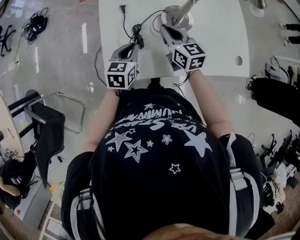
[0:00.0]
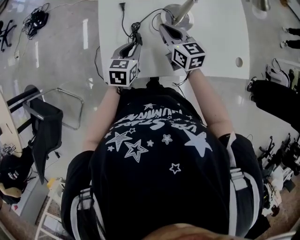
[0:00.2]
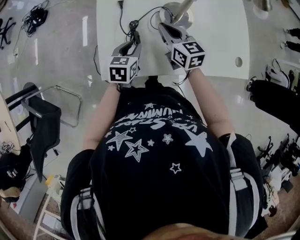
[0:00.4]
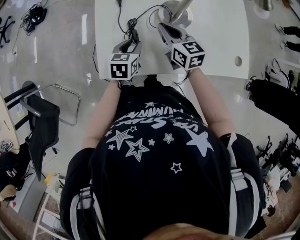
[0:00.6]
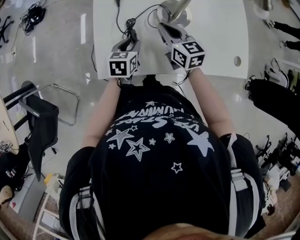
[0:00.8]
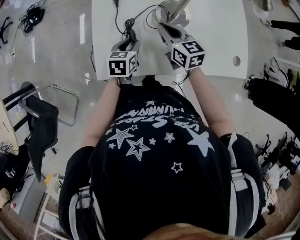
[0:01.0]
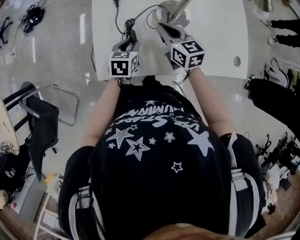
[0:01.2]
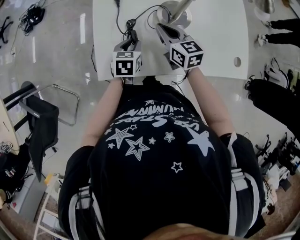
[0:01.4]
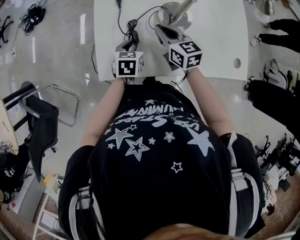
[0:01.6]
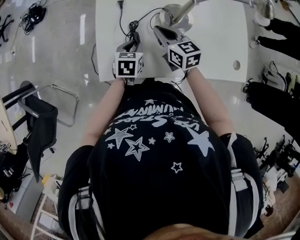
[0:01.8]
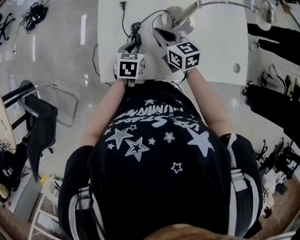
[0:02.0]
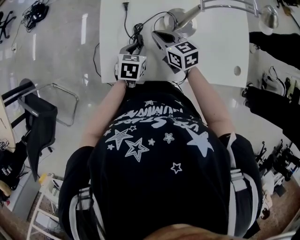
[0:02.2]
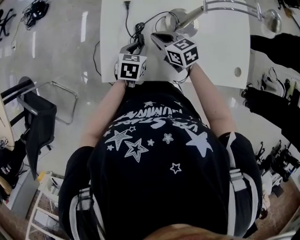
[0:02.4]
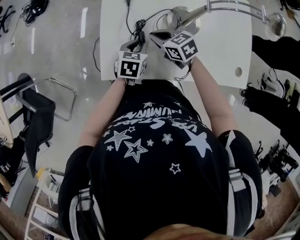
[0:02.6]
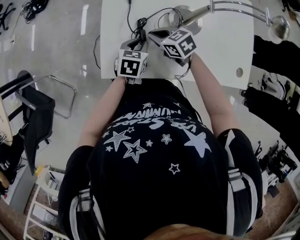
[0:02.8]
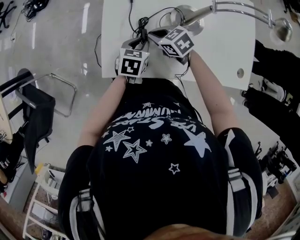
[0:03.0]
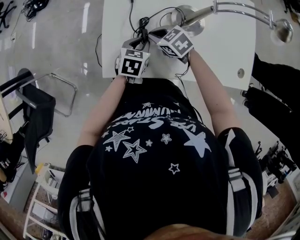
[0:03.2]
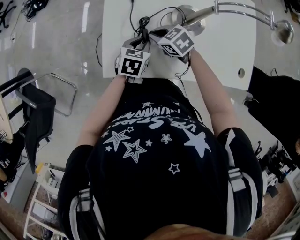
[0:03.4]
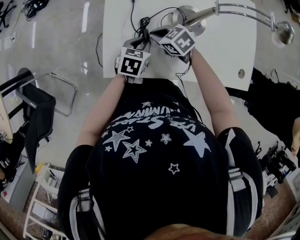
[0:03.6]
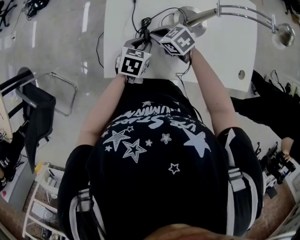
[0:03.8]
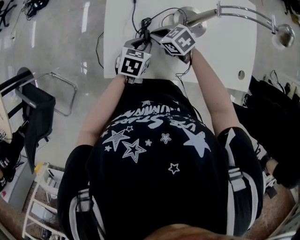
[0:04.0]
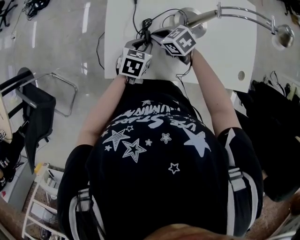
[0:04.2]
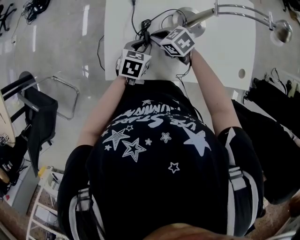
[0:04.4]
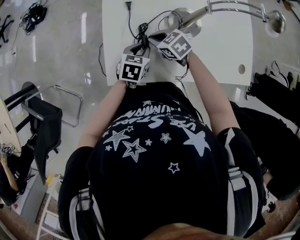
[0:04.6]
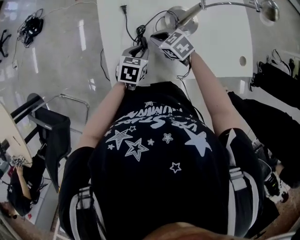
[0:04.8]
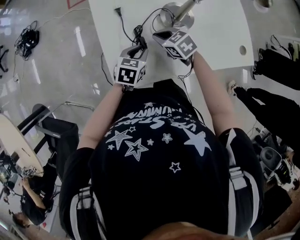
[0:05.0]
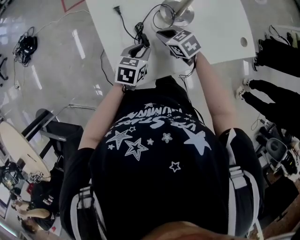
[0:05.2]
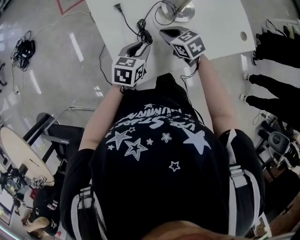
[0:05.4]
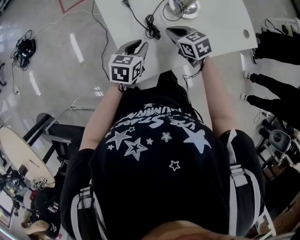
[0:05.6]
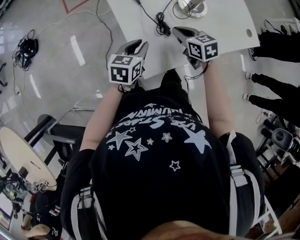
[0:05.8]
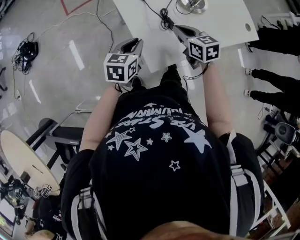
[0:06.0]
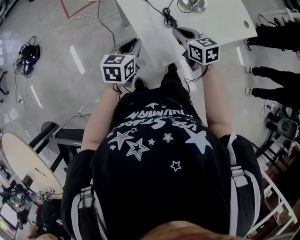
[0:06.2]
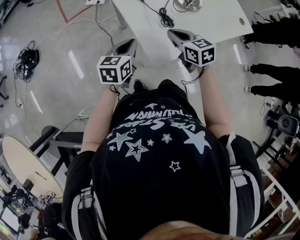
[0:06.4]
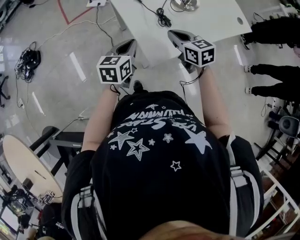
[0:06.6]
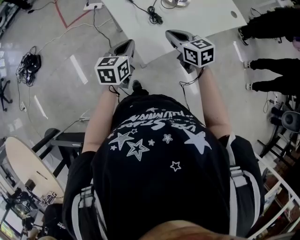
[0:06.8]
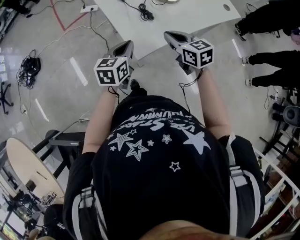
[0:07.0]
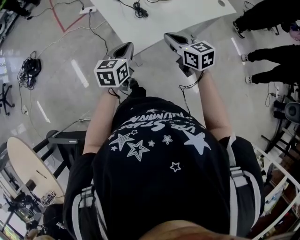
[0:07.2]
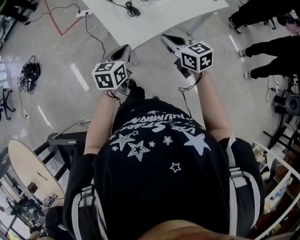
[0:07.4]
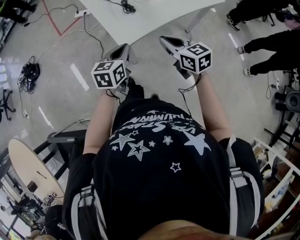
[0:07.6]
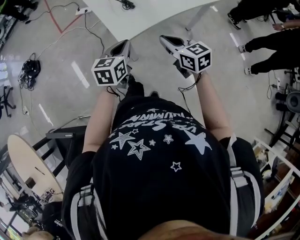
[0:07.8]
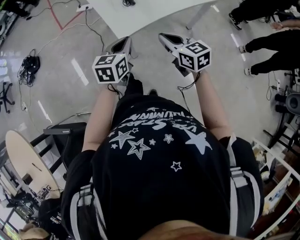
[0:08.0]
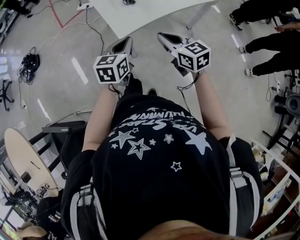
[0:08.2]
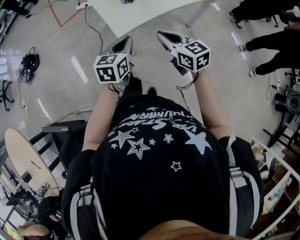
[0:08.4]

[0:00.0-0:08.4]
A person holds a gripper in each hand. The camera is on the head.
0:00.0 to 0:01.4: The left gripper shifts roughly 5 cm downward, and opens.
0:01.4 to 0:02.8: The right gripper shifts some 10 cm to the left and downward, and turns by approximately 40 degrees.
0:02.8 to 0:04.2: The grippers move only a little.
0:04.2 to 0:05.6: The right gripper changes place by some 5 cm, and swivels roughly 40 degrees; the left gripper ends up approximately 10 cm from where it was, and swivels approximately 20 degrees.
0:05.6 to 0:07.0: The left gripper goes approximately 15 cm backward, to the left and upward, and closes, while the right gripper moves backward and upward, roughly 20 cm, and rotates some 20 degrees.
0:07.0 to 0:08.4: The right gripper moves backward, some 15 cm, while the left gripper heads backward and to the right, covering roughly 15 cm.

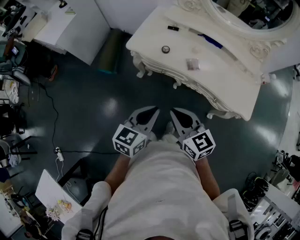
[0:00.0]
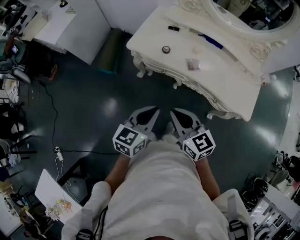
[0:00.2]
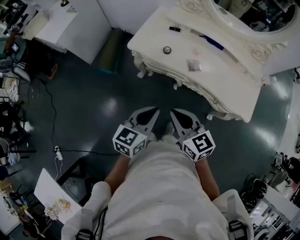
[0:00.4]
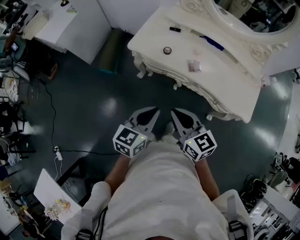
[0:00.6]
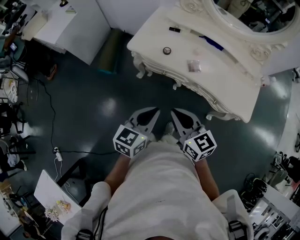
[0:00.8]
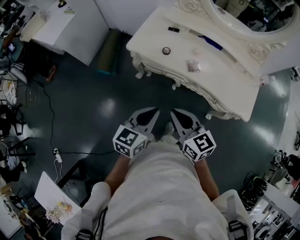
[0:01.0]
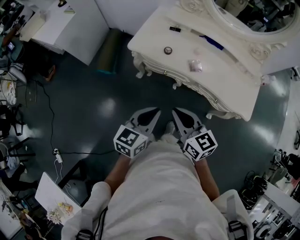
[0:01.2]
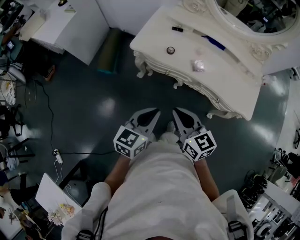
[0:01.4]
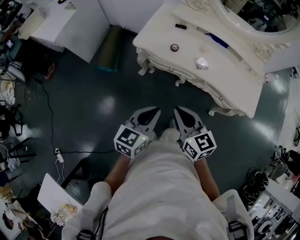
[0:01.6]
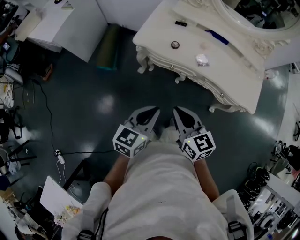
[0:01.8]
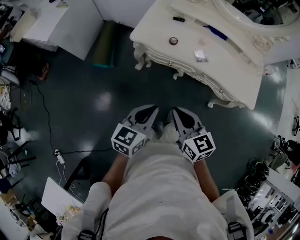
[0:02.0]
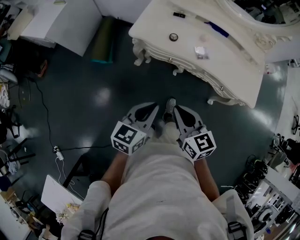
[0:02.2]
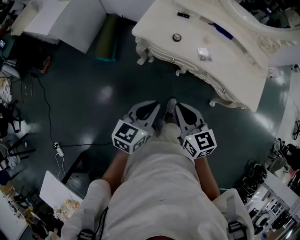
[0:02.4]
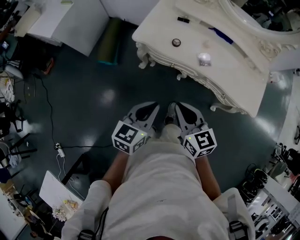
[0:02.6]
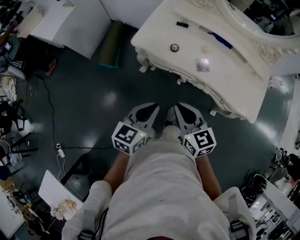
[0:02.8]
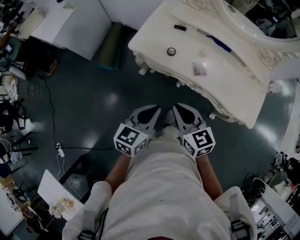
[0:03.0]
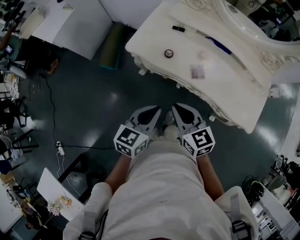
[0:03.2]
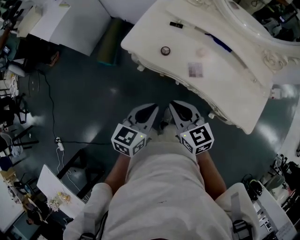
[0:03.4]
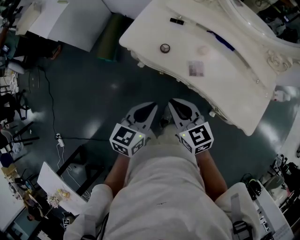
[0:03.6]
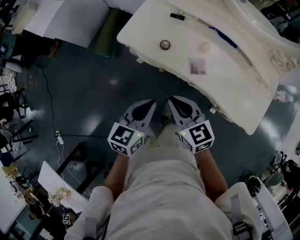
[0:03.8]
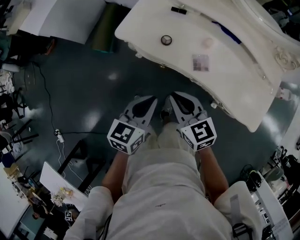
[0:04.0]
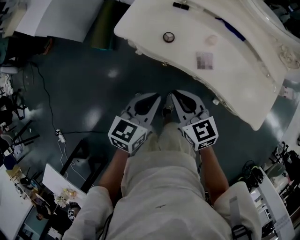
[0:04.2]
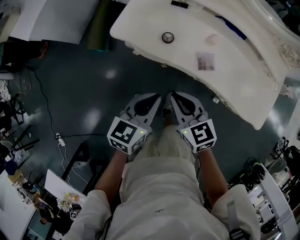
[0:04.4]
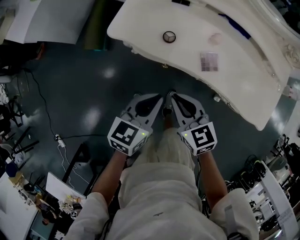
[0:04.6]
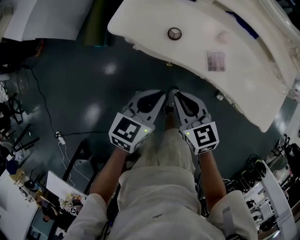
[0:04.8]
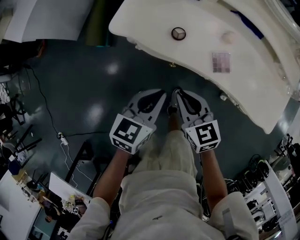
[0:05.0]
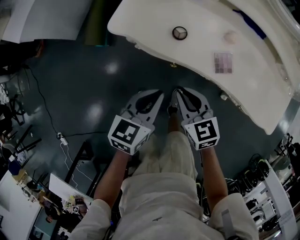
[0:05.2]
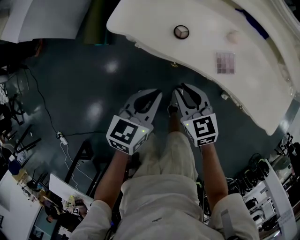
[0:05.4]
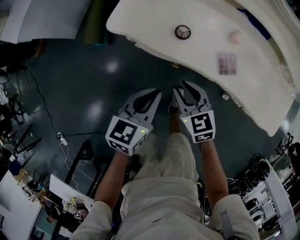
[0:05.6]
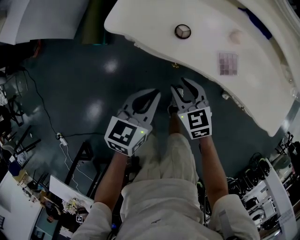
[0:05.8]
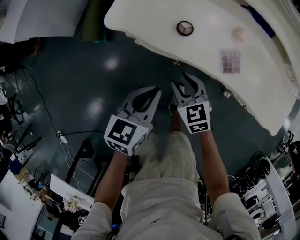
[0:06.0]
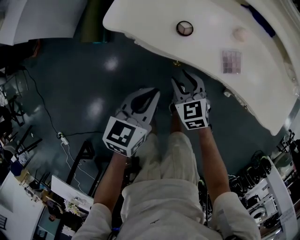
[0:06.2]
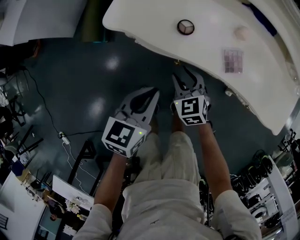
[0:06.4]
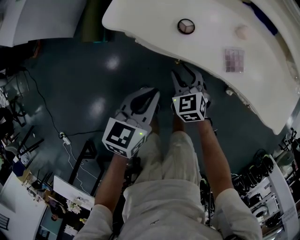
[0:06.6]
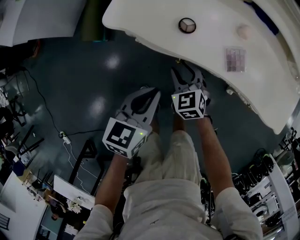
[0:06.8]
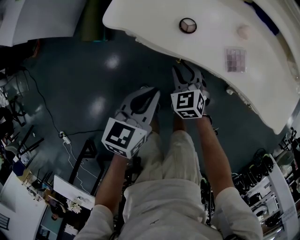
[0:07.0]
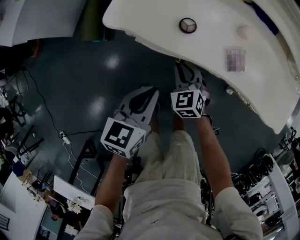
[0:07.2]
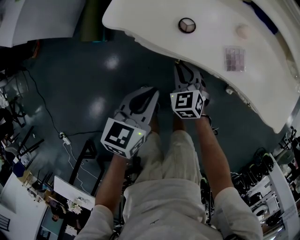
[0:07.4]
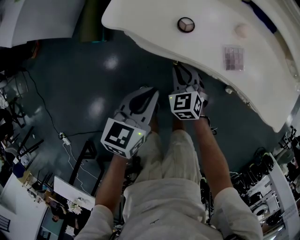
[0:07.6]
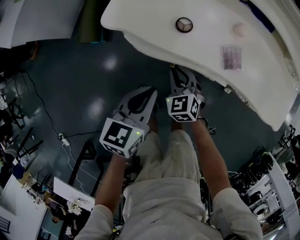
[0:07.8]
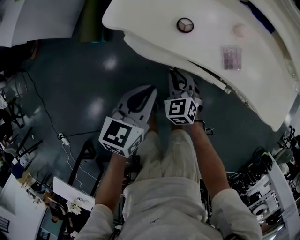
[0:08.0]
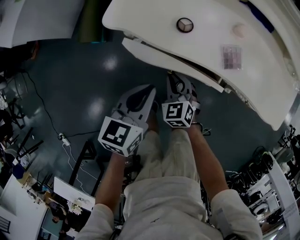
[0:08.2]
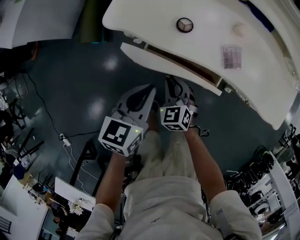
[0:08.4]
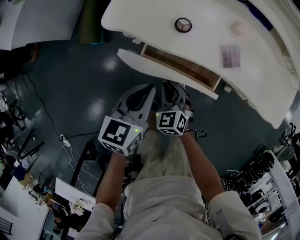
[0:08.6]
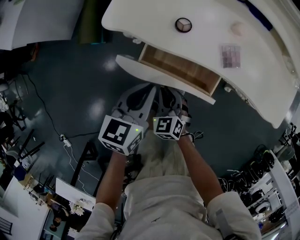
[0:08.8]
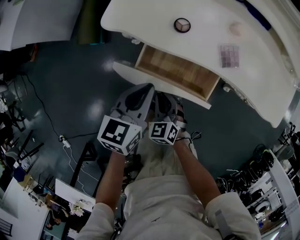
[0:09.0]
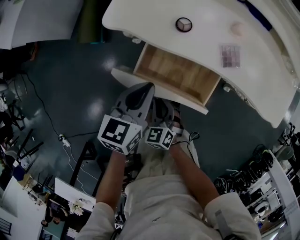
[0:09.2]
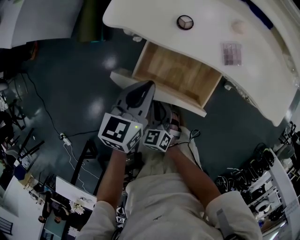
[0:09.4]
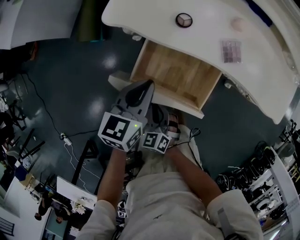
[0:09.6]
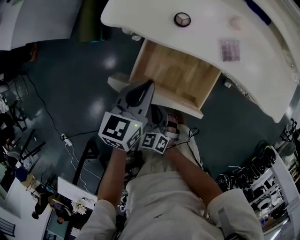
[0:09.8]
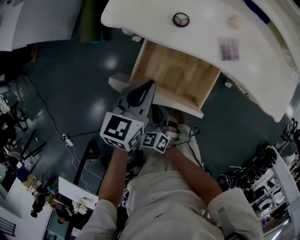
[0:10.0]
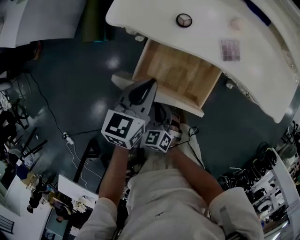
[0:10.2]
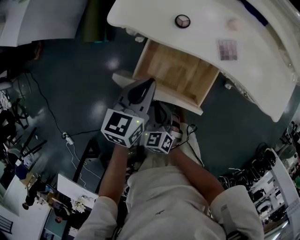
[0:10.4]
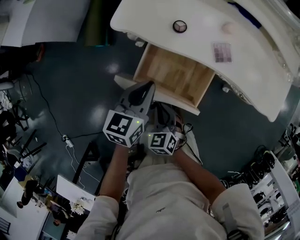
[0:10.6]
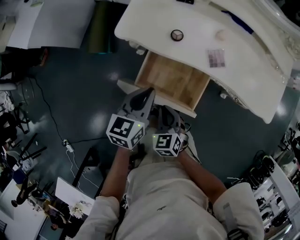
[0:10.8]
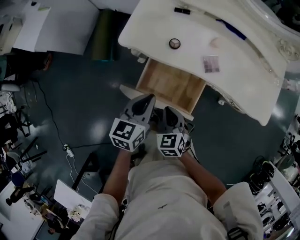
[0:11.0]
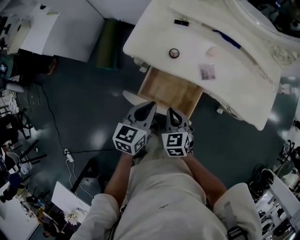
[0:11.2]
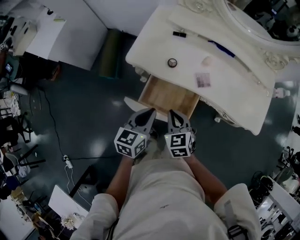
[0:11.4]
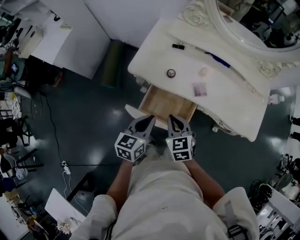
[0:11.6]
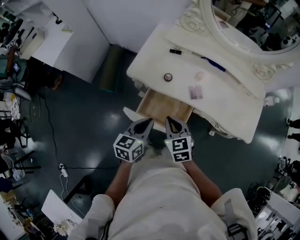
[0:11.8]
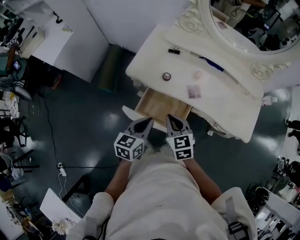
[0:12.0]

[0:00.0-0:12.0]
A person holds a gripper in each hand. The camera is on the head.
0:00.0 to 0:01.6: The two grippers go roughly 5 cm to the left.
0:01.6 to 0:03.0: The grippers both shift forward by about 5 cm.
0:03.0 to 0:04.4: The right gripper shifts some 15 cm downward and forward. Meanwhile the left gripper is displaced forward and downward by about 15 cm.
0:04.4 to 0:06.0: The left gripper moves downward, about 10 cm. Meanwhile the right gripper goes approximately 15 cm downward, and opens up.
0:06.0 to 0:07.6: The right gripper ends up about 5 cm from where it was.
0:07.6 to 0:09.0: The right gripper travels backward by approximately 10 cm.
0:09.0 to 0:10.4: The right gripper heads backward, covering about 5 cm.
0:10.4 to 0:12.0: The left gripper shifts approximately 15 cm upward and backward; the right gripper travels upward by approximately 25 cm, and turns by about 20 degrees.

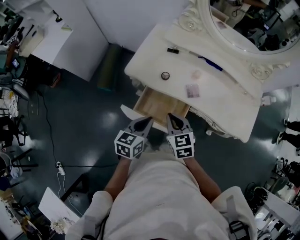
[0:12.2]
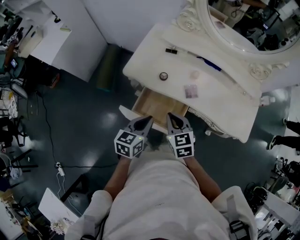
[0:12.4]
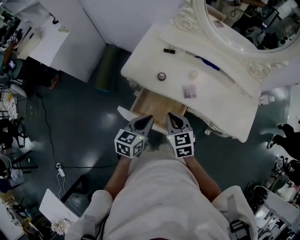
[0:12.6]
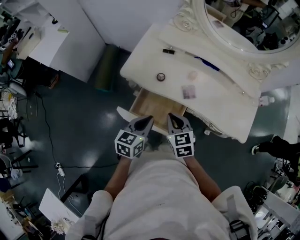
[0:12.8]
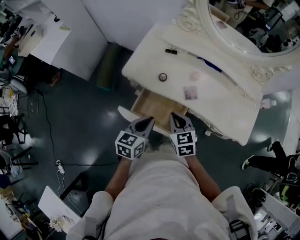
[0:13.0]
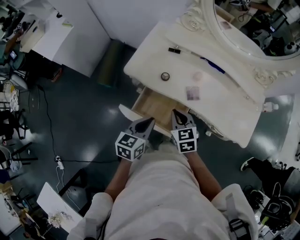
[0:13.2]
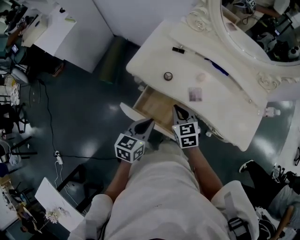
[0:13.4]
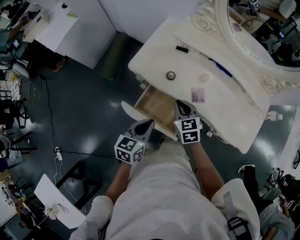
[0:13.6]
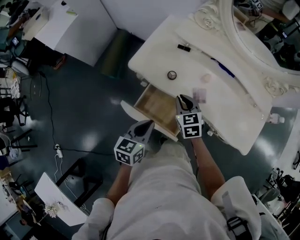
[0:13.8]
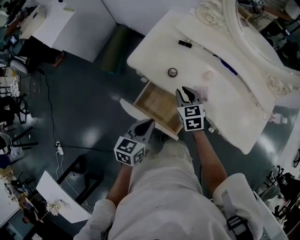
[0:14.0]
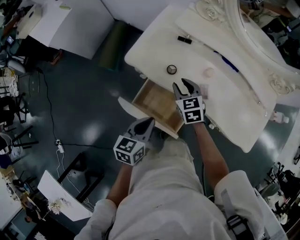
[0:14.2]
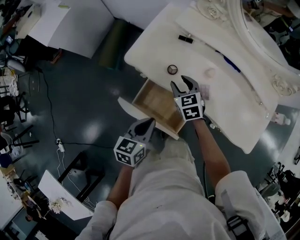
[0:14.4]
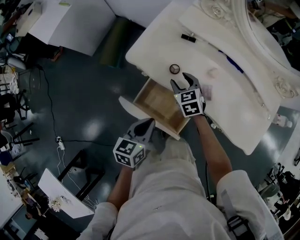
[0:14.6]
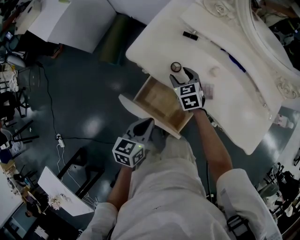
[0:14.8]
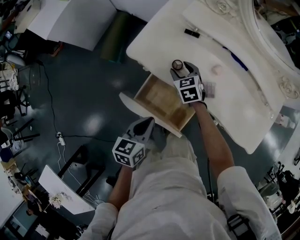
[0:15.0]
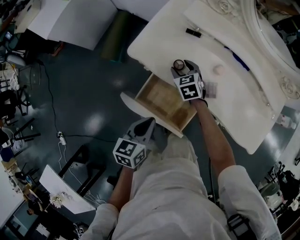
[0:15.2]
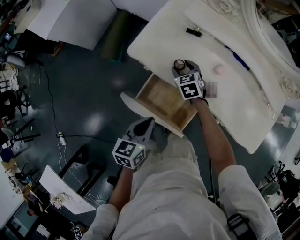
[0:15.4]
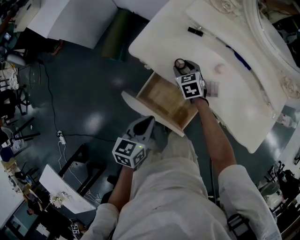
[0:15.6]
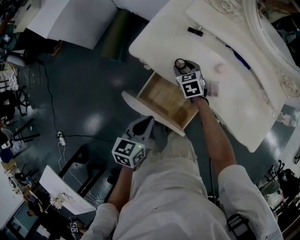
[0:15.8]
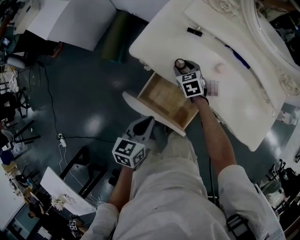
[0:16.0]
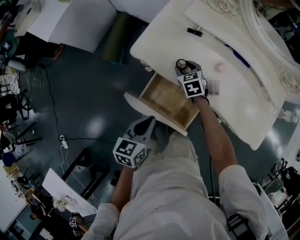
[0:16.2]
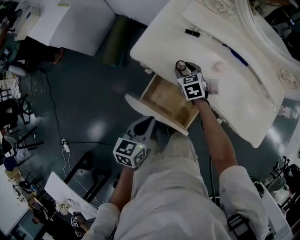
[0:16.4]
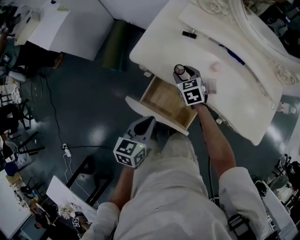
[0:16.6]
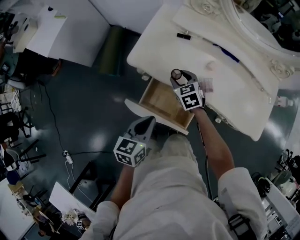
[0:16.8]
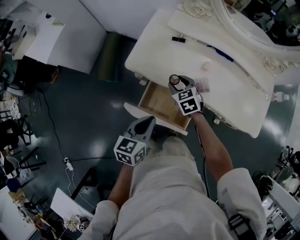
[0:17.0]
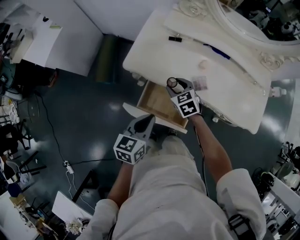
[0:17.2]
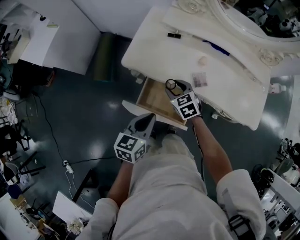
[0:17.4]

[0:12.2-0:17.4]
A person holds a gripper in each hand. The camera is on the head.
0:12.2 to 0:14.0: The right gripper shifts some 15 cm forward and downward.
0:14.0 to 0:15.6: The right gripper goes some 15 cm downward and forward.
0:15.6 to 0:17.4: The right gripper shifts about 15 cm backward and upward.
